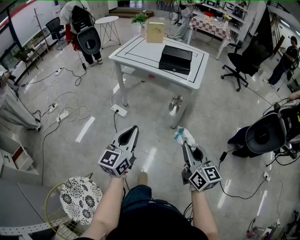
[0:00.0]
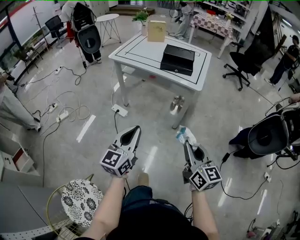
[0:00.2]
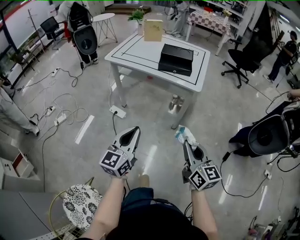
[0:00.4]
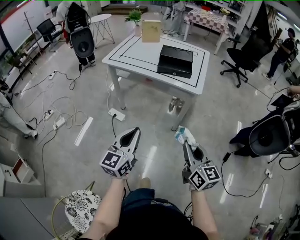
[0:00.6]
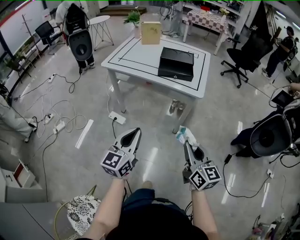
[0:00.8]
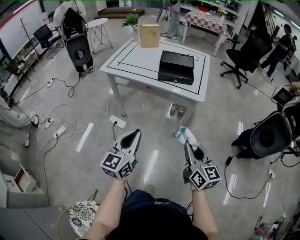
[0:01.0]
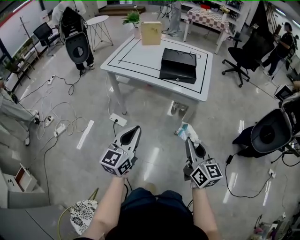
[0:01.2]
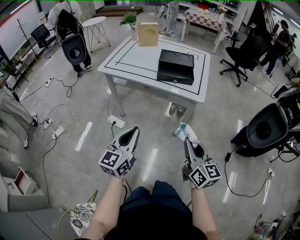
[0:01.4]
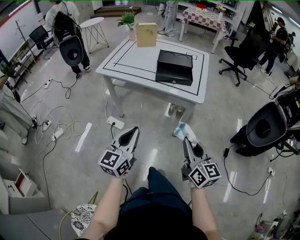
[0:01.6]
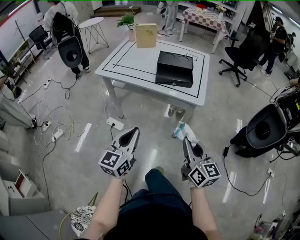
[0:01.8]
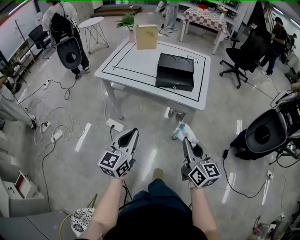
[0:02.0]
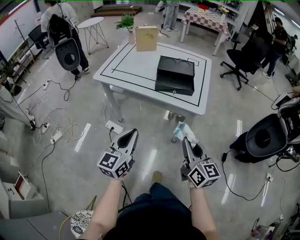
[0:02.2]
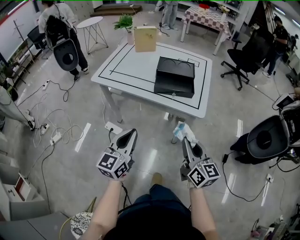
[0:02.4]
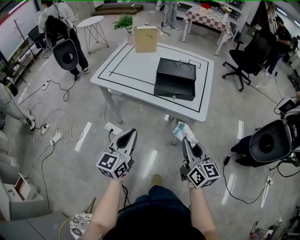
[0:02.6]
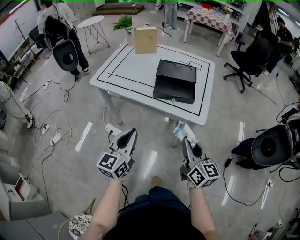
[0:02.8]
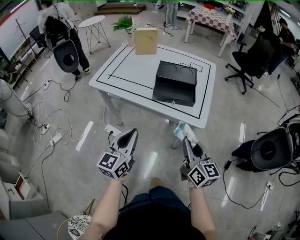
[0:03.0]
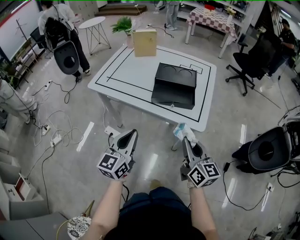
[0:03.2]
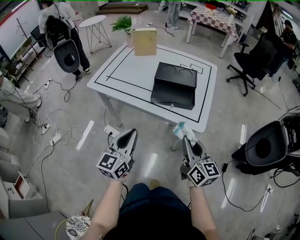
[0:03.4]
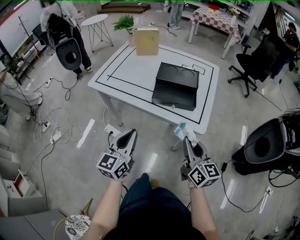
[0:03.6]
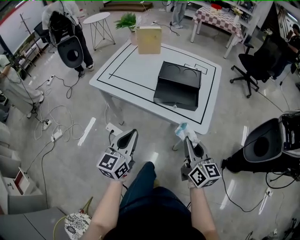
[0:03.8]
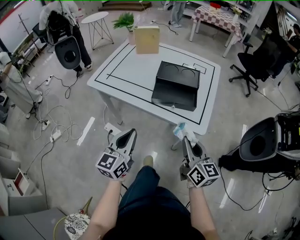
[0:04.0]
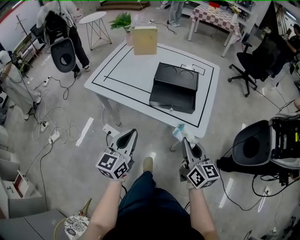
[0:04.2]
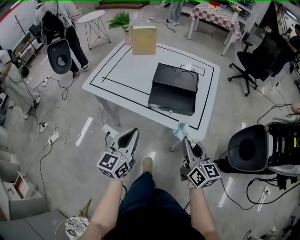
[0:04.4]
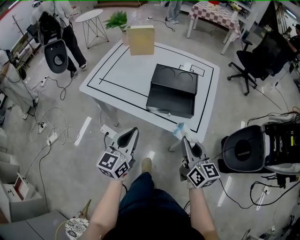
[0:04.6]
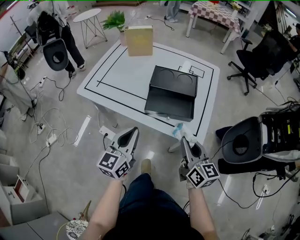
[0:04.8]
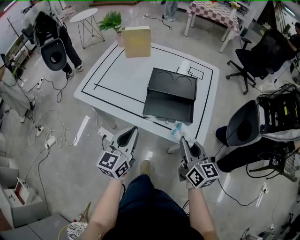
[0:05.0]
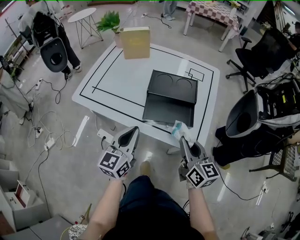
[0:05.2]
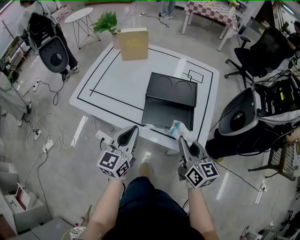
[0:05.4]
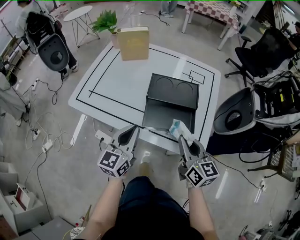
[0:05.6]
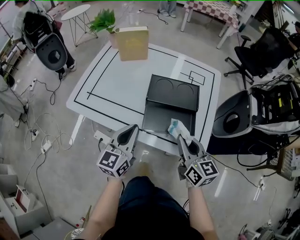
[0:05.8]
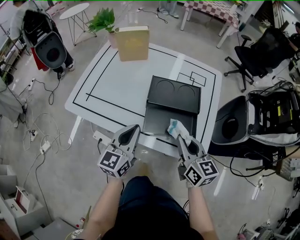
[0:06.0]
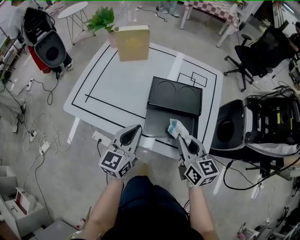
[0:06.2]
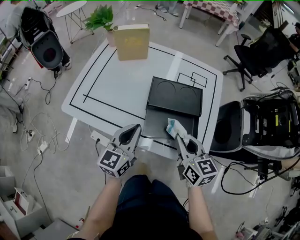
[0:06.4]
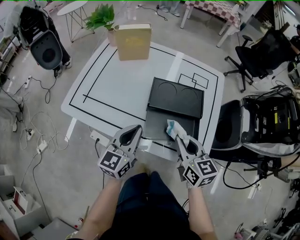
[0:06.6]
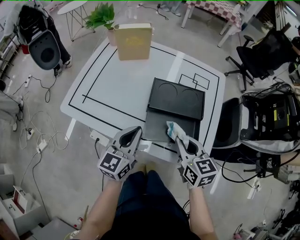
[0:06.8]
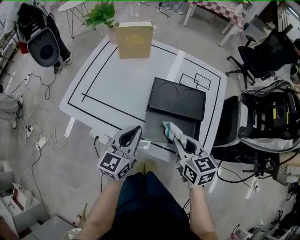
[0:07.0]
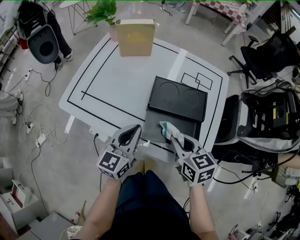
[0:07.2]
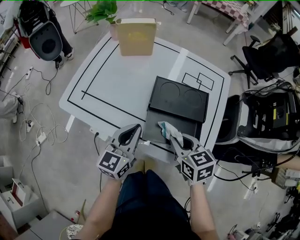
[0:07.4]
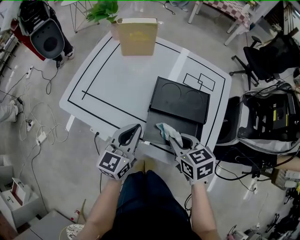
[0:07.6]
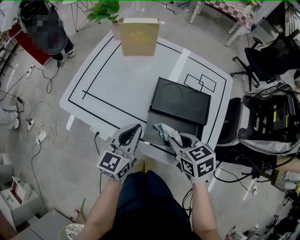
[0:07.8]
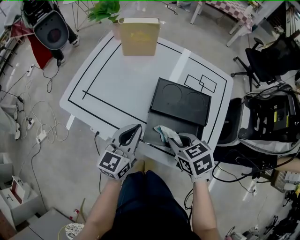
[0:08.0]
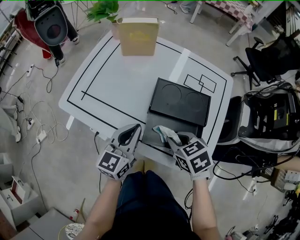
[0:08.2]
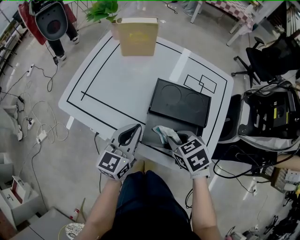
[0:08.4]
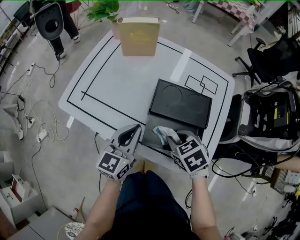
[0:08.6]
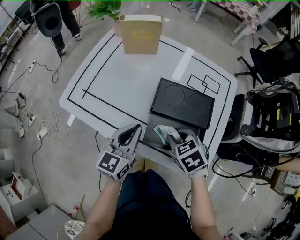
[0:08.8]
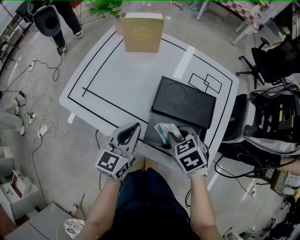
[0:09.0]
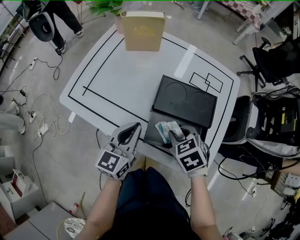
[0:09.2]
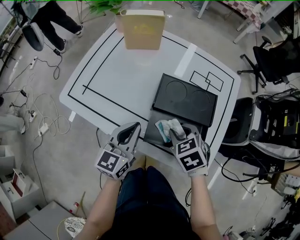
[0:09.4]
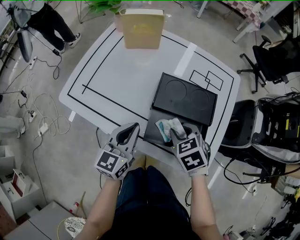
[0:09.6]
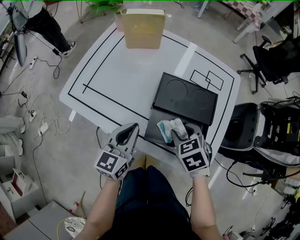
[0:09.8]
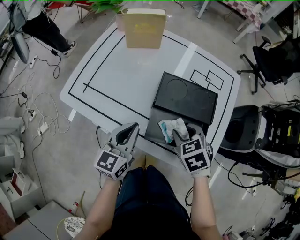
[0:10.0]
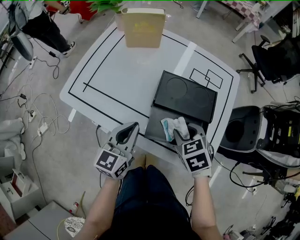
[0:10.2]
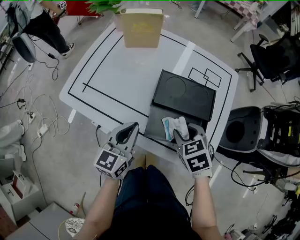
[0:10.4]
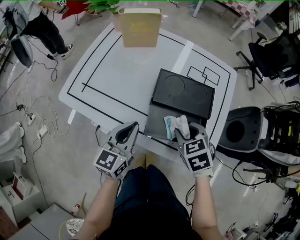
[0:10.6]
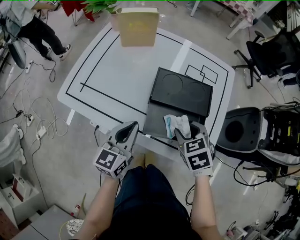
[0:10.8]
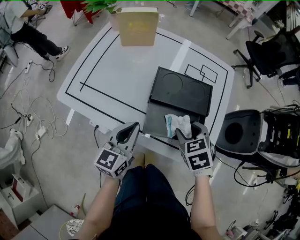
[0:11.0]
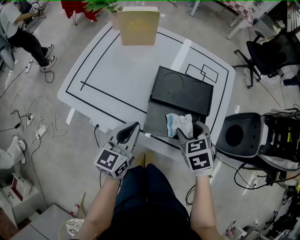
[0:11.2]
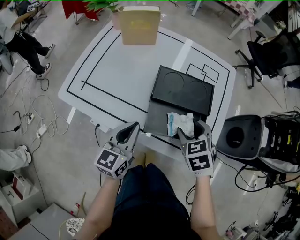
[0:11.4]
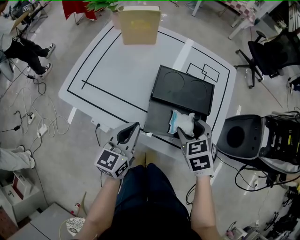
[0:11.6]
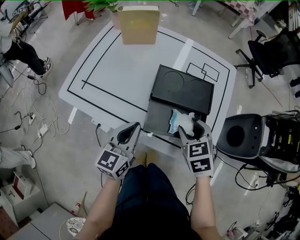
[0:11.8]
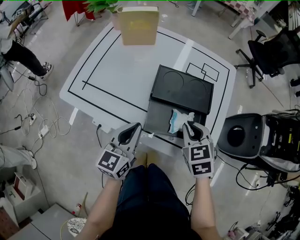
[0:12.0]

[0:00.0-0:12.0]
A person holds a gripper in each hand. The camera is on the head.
0:00.0 to 0:01.6: Both grippers move forward, about 20 cm.
0:01.6 to 0:03.0: The two grippers go approximately 15 cm forward.
0:03.0 to 0:04.4: Both grippers move forward, roughly 10 cm.
0:04.4 to 0:06.0: Both grippers move forward, approximately 15 cm.
0:06.0 to 0:07.6: The right gripper moves downward and forward, some 10 cm, and changes its angle by roughly 30 degrees, while the left gripper moves forward, some 5 cm.
0:07.6 to 0:09.0: The right gripper changes its angle by some 20 degrees.
0:09.0 to 0:10.4: The grippers make only small movements.
0:10.4 to 0:12.0: The right gripper closes.

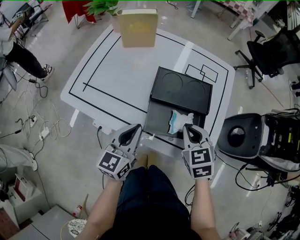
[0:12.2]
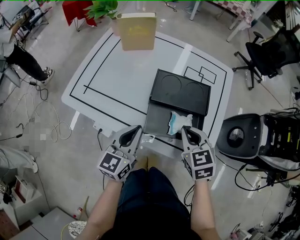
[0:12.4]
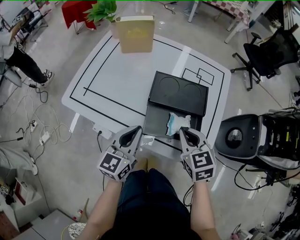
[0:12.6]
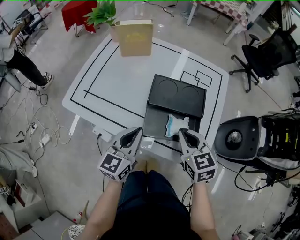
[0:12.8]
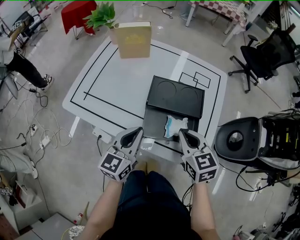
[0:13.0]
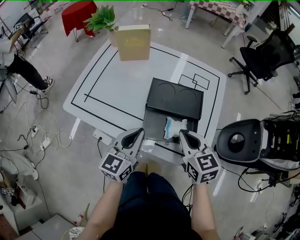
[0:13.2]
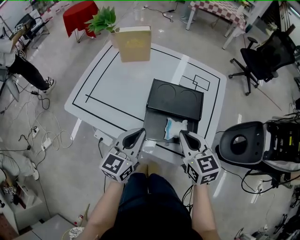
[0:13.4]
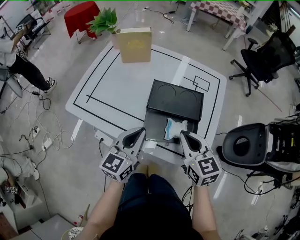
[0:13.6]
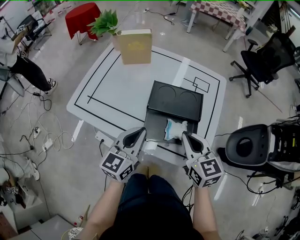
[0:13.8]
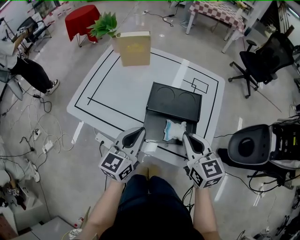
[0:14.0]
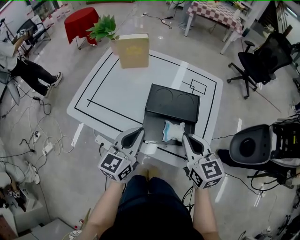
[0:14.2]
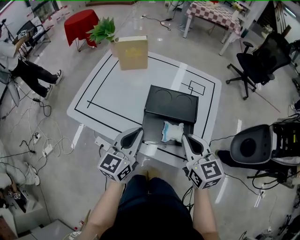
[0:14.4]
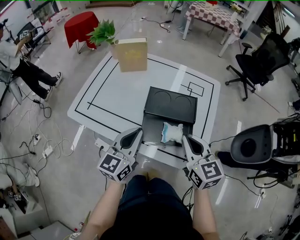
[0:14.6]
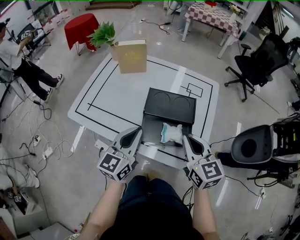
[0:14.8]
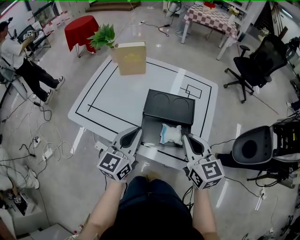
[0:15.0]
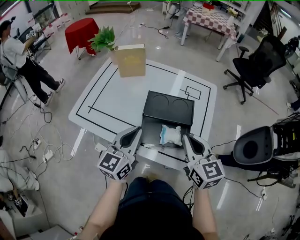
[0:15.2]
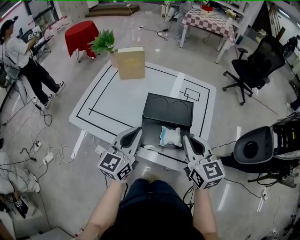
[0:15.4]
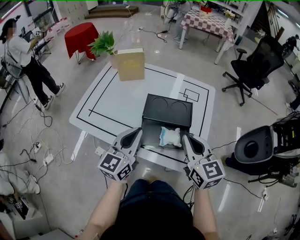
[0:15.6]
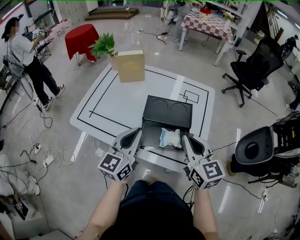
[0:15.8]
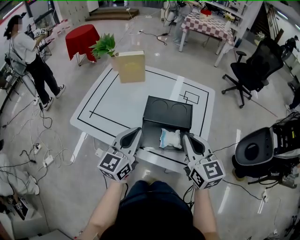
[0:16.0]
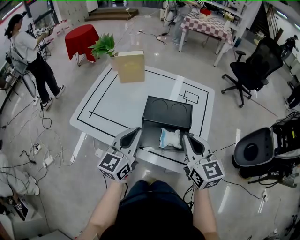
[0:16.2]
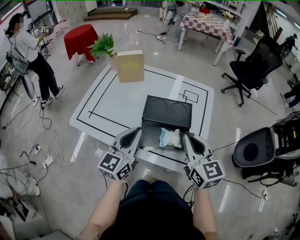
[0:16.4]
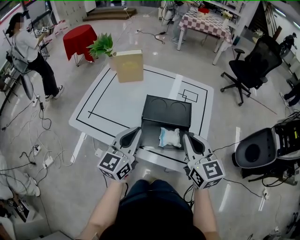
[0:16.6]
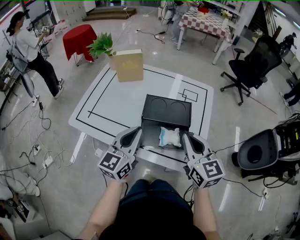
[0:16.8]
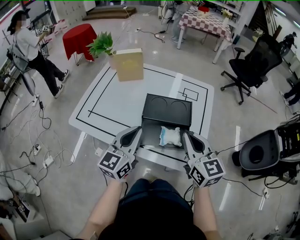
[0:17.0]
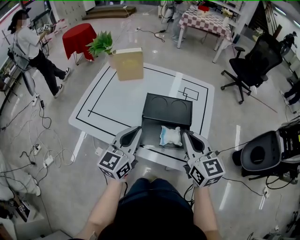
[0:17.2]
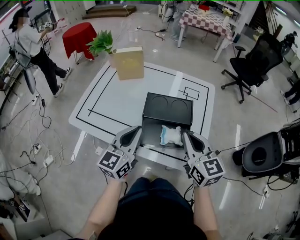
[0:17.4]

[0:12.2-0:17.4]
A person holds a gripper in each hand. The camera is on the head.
0:12.2 to 0:14.0: Both grippers travel together upward, roughly 5 cm. The right gripper rotates about 30 degrees.
0:14.0 to 0:15.6: The grippers both shift upward by about 5 cm.
0:15.6 to 0:17.4: Neither gripper changes place.

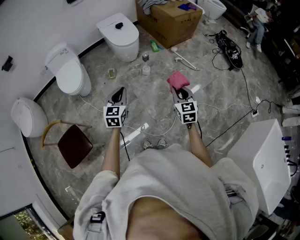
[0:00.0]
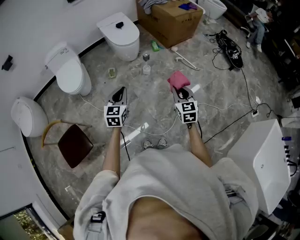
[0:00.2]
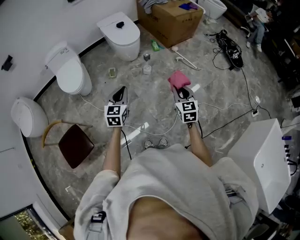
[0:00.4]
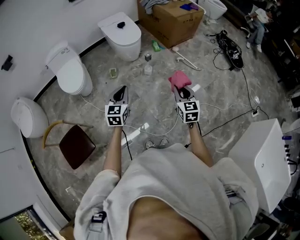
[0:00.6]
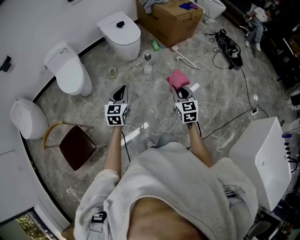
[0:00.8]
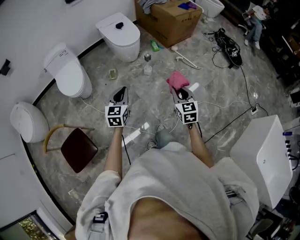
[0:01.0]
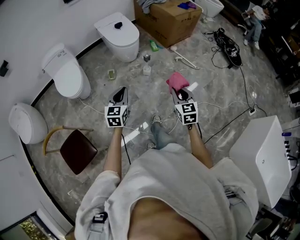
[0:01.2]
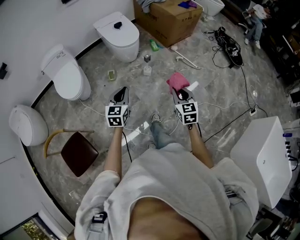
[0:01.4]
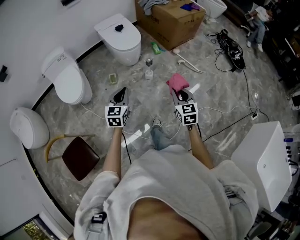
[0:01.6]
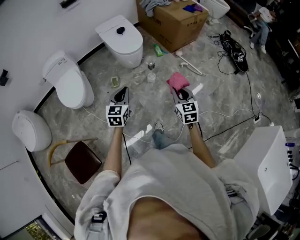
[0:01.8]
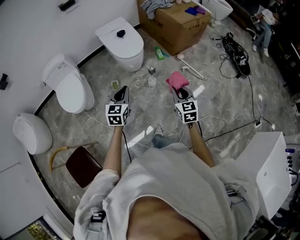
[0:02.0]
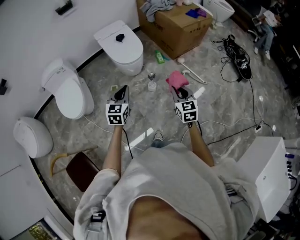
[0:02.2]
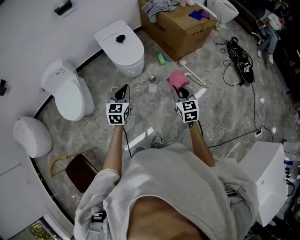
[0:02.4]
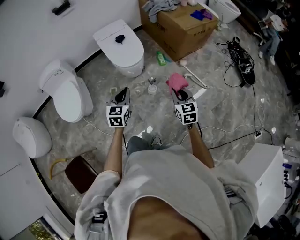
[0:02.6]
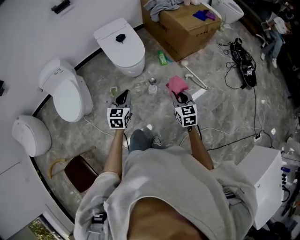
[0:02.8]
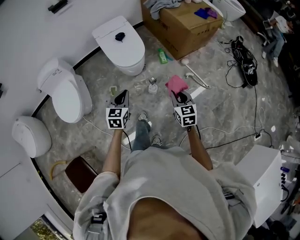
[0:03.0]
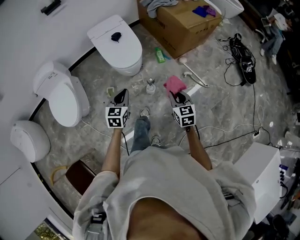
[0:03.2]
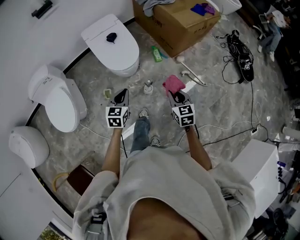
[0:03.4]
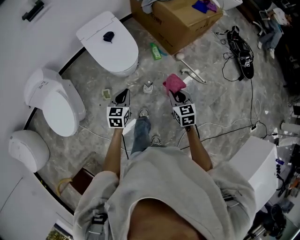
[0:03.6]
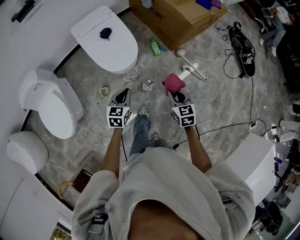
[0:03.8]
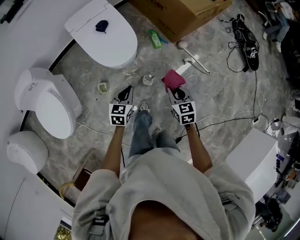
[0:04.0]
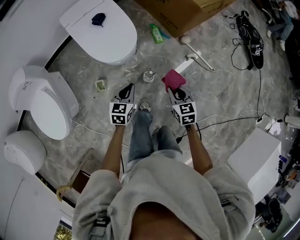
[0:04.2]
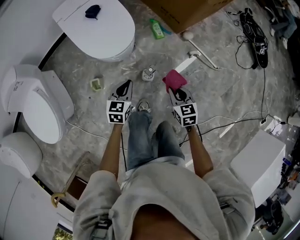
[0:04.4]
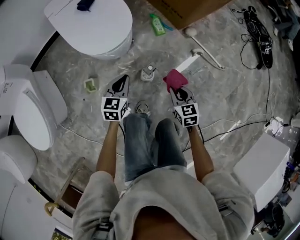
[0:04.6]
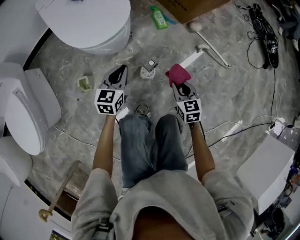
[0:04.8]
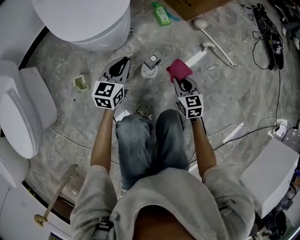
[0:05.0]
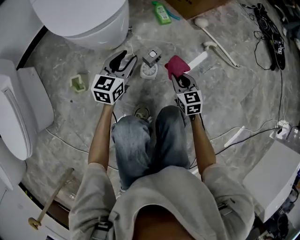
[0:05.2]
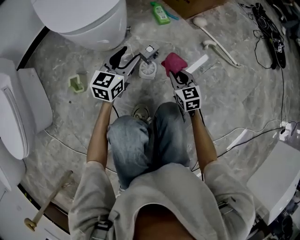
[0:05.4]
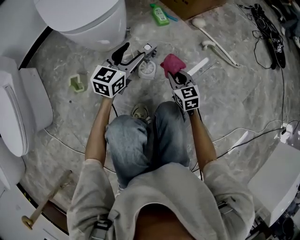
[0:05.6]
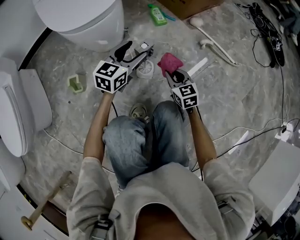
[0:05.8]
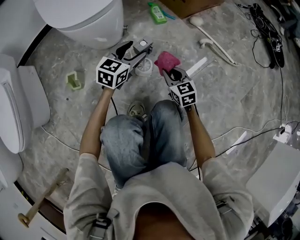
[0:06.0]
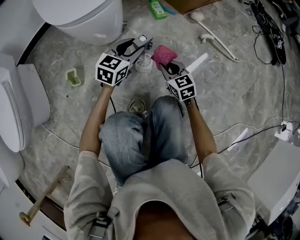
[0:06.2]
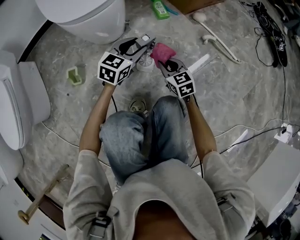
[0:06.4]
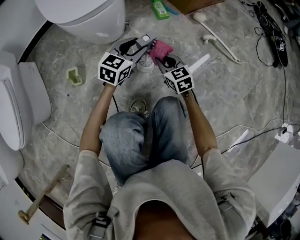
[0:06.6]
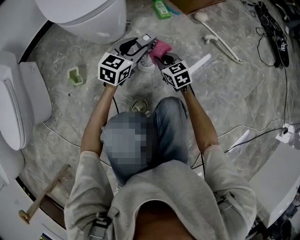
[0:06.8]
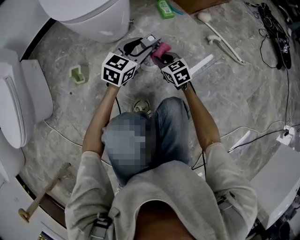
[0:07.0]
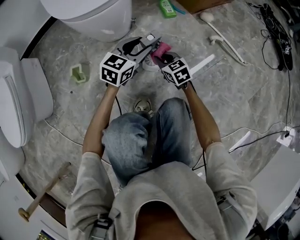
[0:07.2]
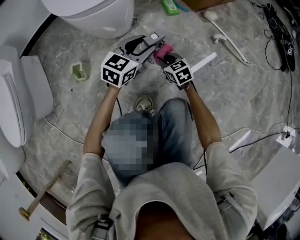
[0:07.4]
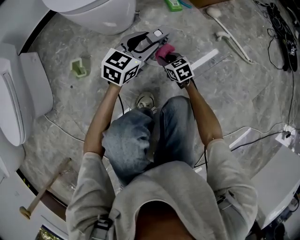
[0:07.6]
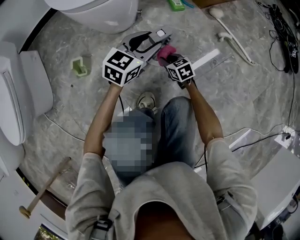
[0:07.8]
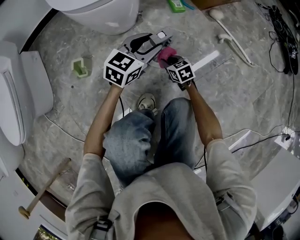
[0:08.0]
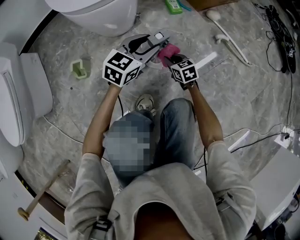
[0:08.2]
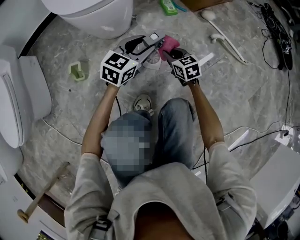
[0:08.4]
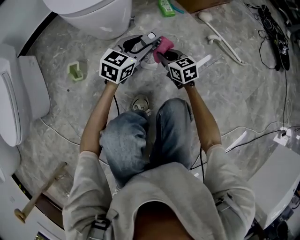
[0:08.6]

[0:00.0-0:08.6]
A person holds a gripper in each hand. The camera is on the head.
0:00.0 to 0:01.4: The left gripper moves forward, some 5 cm. Meanwhile the right gripper moves to the left, approximately 5 cm.
0:01.4 to 0:02.8: Both grippers travel together forward, approximately 30 cm.
0:02.8 to 0:04.4: Both grippers move downward and forward, roughly 35 cm.
0:04.4 to 0:05.8: The right gripper goes some 30 cm downward. The left gripper goes approximately 20 cm downward and to the right, rotates about 20 degrees, and opens.
0:05.8 to 0:07.2: The right gripper travels to the left by roughly 10 cm.
0:07.2 to 0:08.6: The right gripper moves roughly 10 cm downward and comes back.
